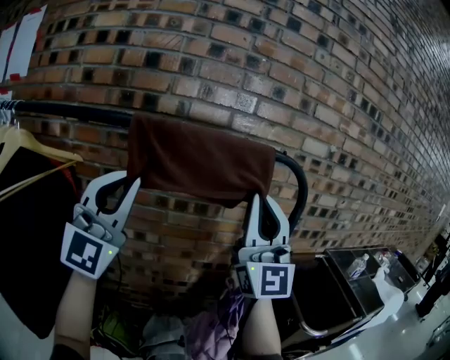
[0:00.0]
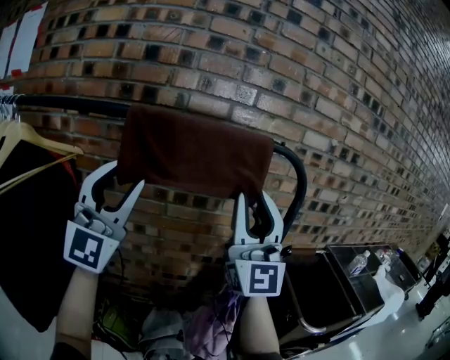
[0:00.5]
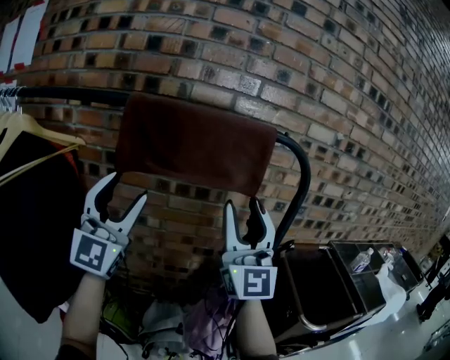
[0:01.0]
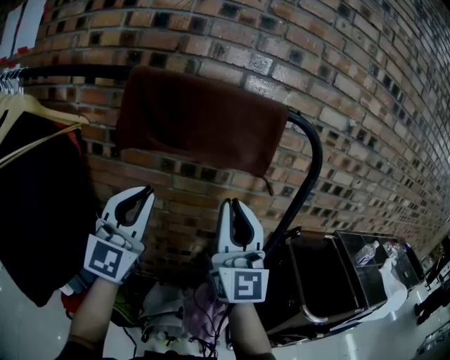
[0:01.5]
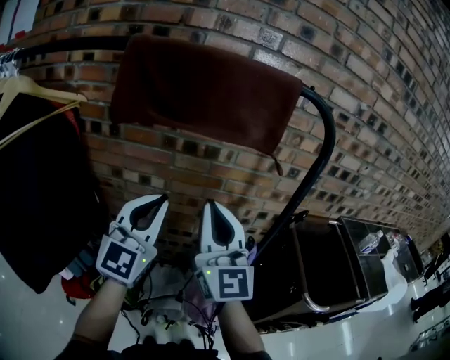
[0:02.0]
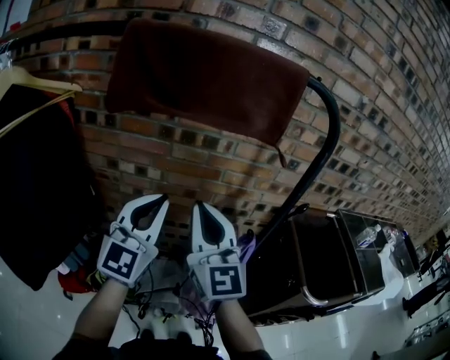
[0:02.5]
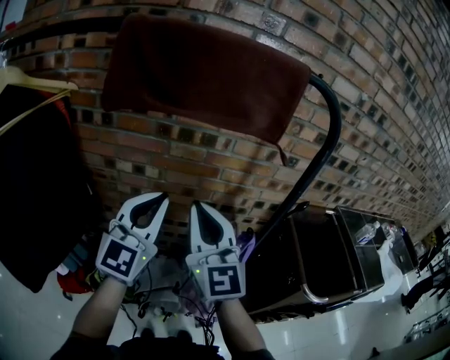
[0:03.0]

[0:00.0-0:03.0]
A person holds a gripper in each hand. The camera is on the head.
0:00.0 to 0:01.5: The two grippers go some 10 cm downward. The right gripper opens, then closes again; the left gripper opens, then closes once more.
0:01.5 to 0:03.0: The right gripper is displaced downward and to the left by approximately 15 cm, and swivels some 20 degrees. Meanwhile the left gripper shifts roughly 10 cm downward.

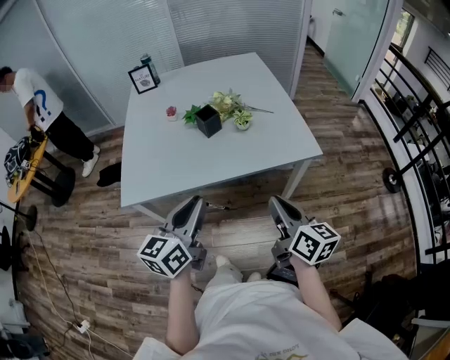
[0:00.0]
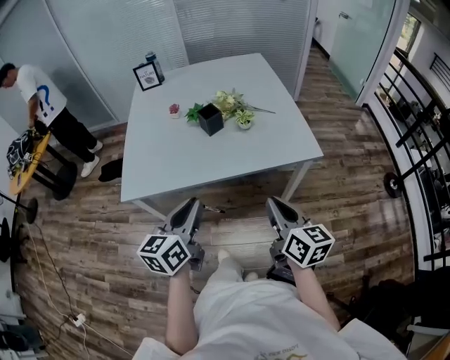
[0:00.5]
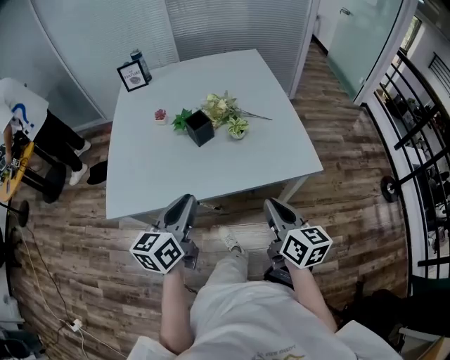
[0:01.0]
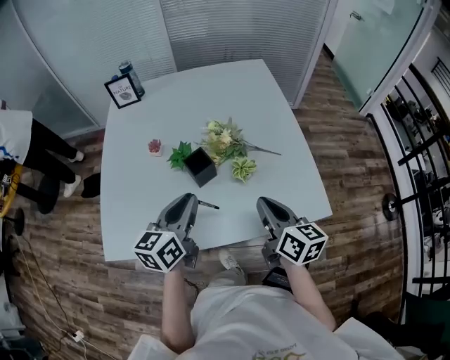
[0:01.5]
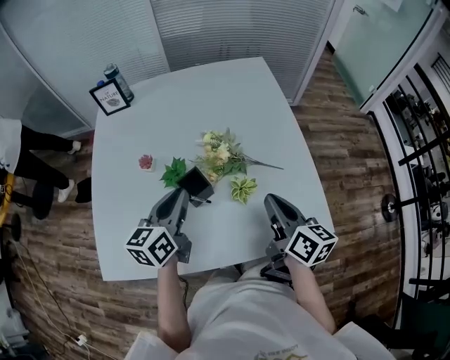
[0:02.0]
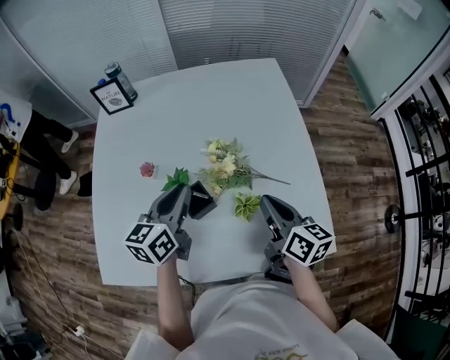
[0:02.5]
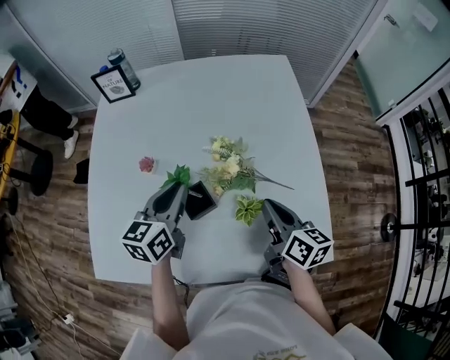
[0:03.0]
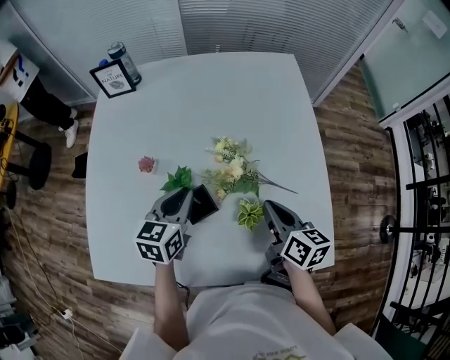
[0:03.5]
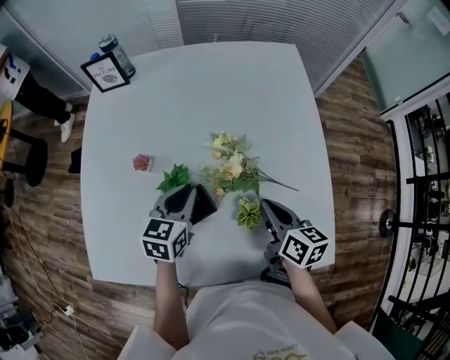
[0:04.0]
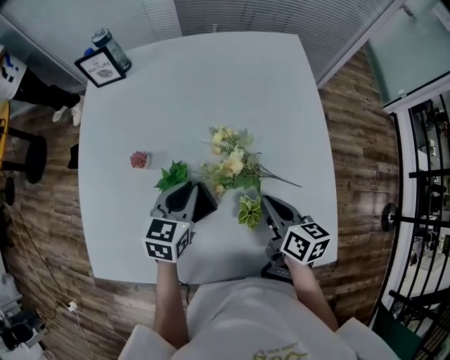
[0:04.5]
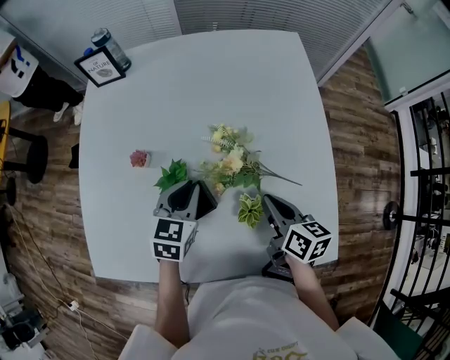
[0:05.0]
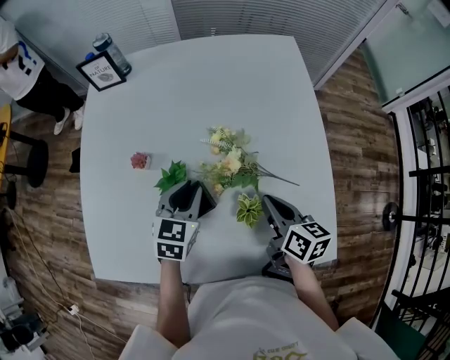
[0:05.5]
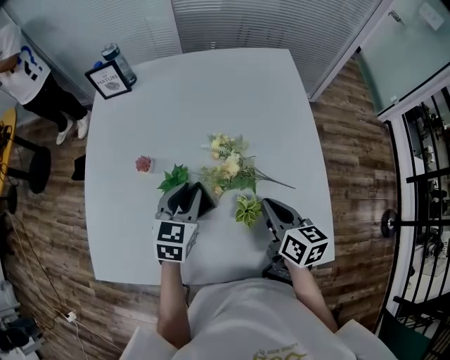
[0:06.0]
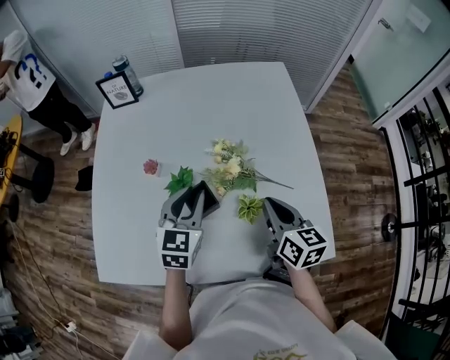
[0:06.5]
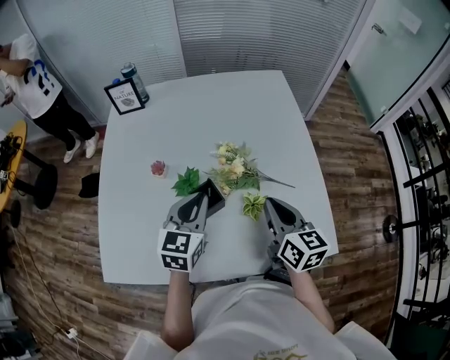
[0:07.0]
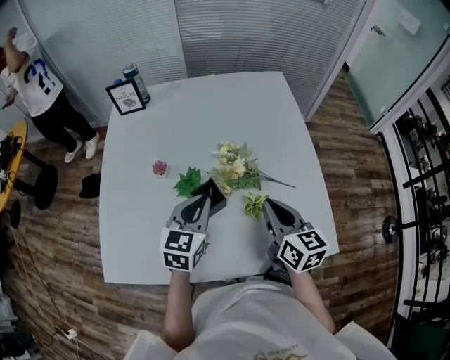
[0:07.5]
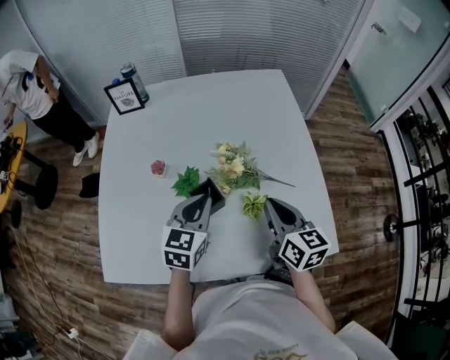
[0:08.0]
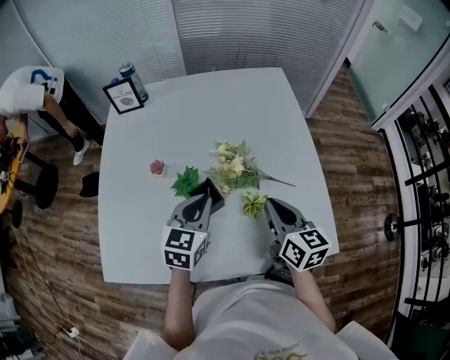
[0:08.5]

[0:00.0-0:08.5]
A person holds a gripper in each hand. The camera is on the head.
0:00.0 to 0:02.0: The pair of grippers is taken forward, approximately 40 cm.
0:02.0 to 0:04.0: The right gripper goes about 15 cm forward and downward, while the left gripper is displaced downward and forward by about 15 cm, and changes its angle by roughly 20 degrees.
0:04.0 to 0:06.5: Both grippers travel together upward, approximately 5 cm.
0:06.5 to 0:08.5: The grippers stay close to where they were, moving slightly.

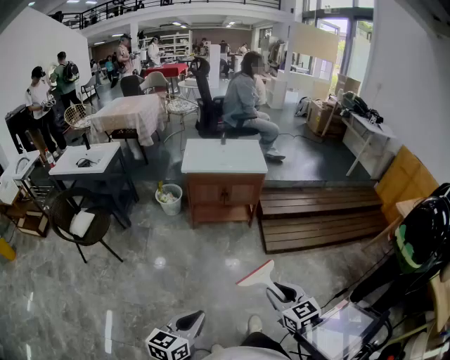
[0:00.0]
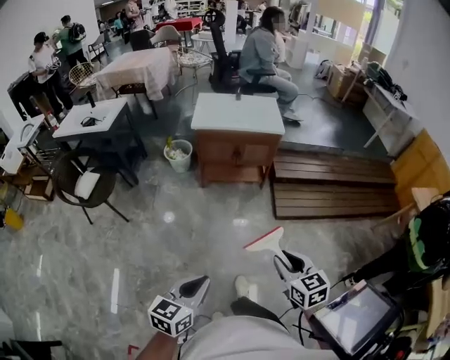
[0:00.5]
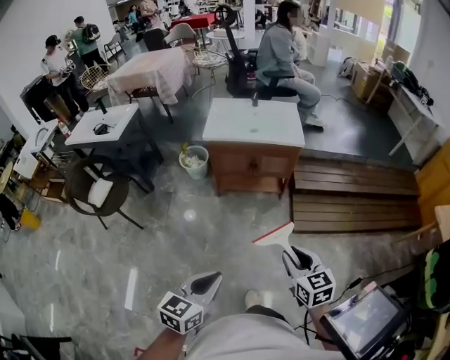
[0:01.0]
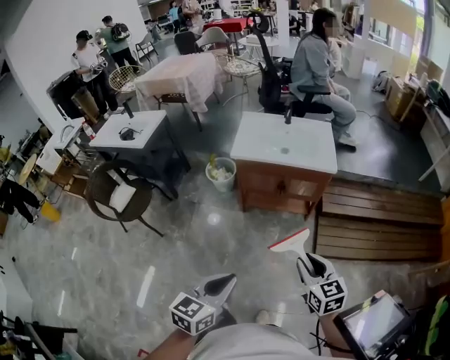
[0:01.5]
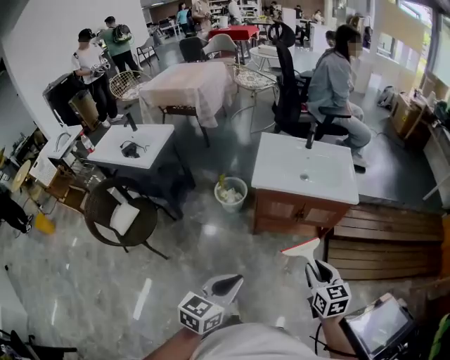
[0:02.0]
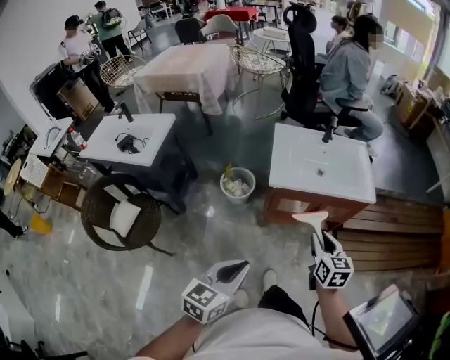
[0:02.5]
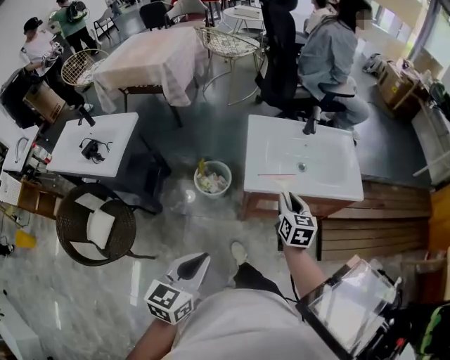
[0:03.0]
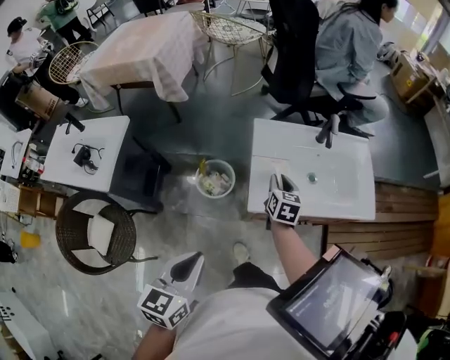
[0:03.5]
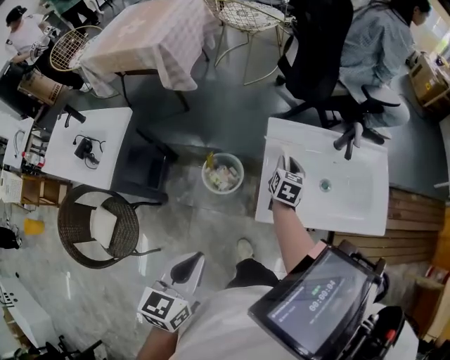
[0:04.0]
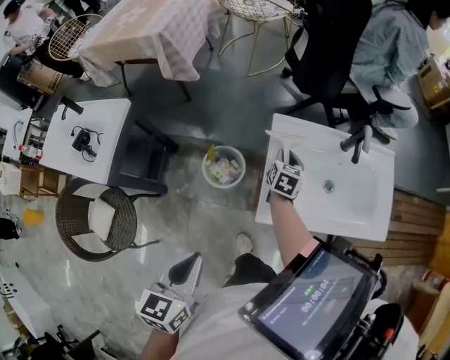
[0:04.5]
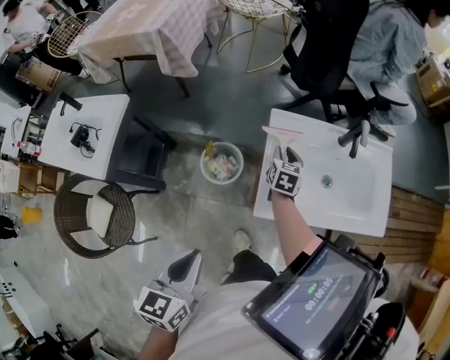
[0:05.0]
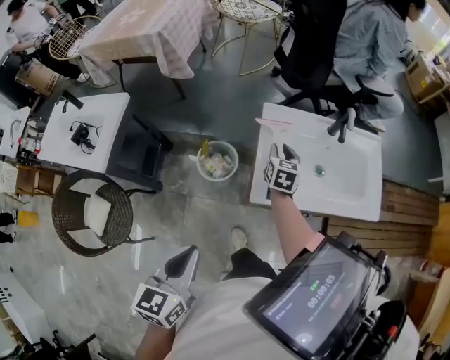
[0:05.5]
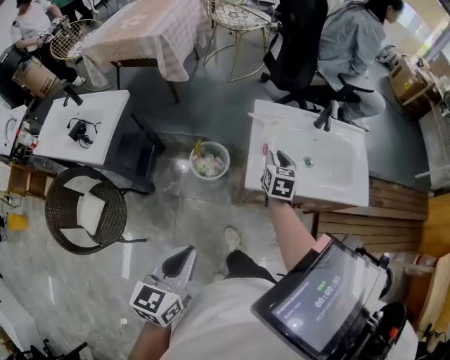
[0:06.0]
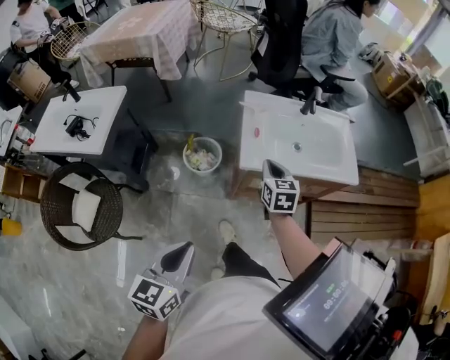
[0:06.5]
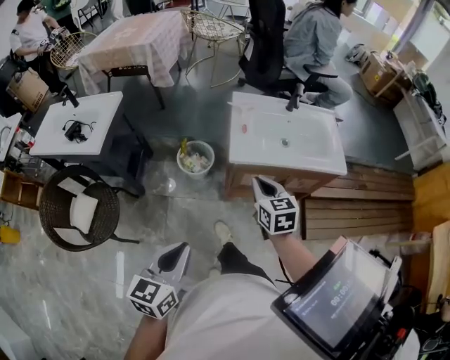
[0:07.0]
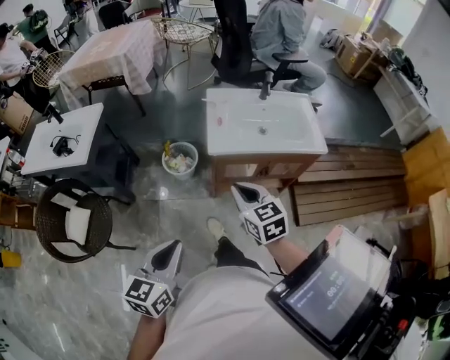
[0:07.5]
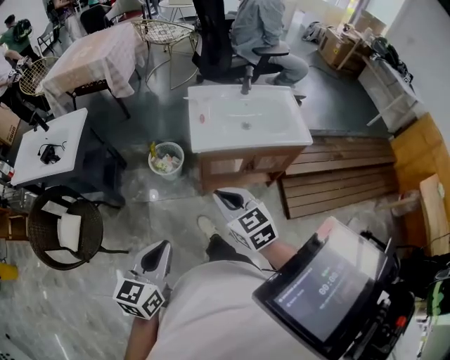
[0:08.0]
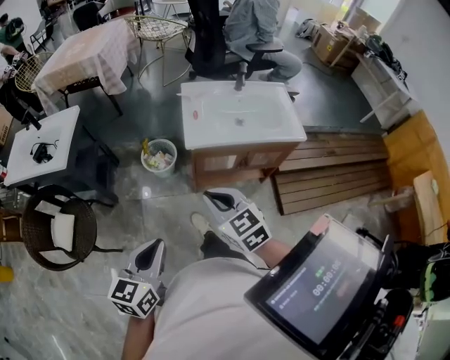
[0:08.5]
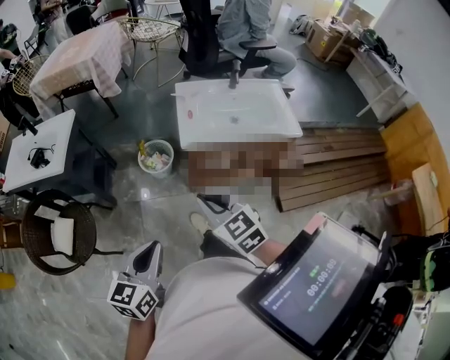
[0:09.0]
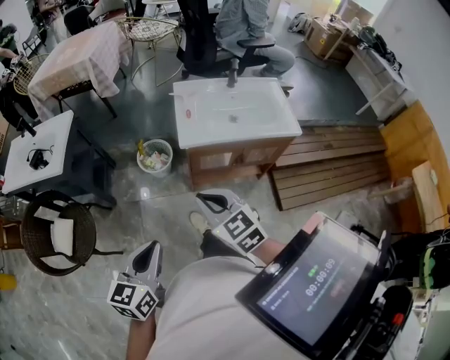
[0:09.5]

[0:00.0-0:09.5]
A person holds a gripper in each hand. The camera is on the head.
0:00.0 to 0:02.0: The pair of grippers is taken forward, some 60 cm.
0:02.0 to 0:04.0: The two grippers travel together, forward and to the left, some 60 cm. The right gripper rotates approximately 30 degrees.
0:04.0 to 0:05.5: The left gripper moves roughly 5 cm.
0:05.5 to 0:07.5: The left gripper shifts approximately 30 cm backward. Meanwhile the right gripper is displaced backward by some 50 cm, turns by about 30 degrees, and closes its fingers.
0:07.5 to 0:09.5: The right gripper shifts about 5 cm backward.

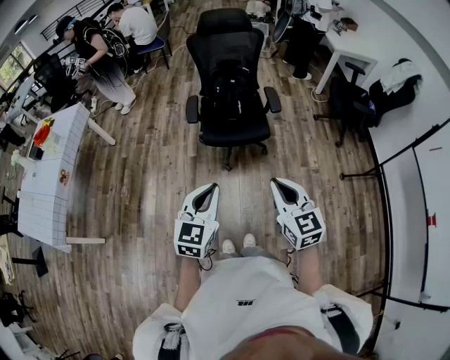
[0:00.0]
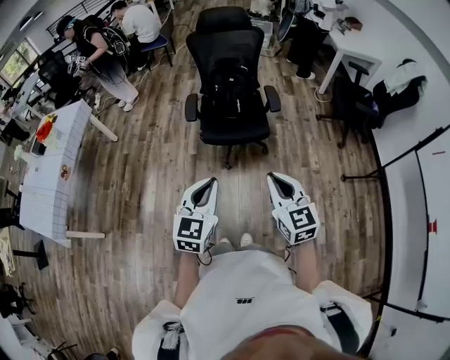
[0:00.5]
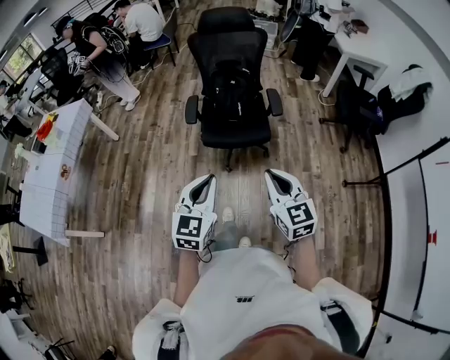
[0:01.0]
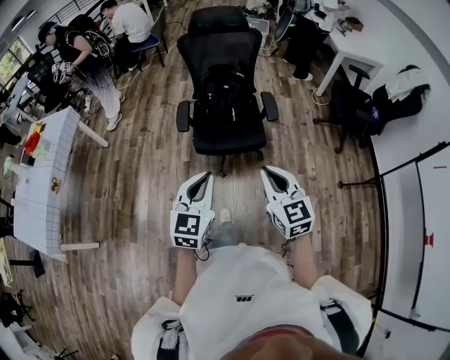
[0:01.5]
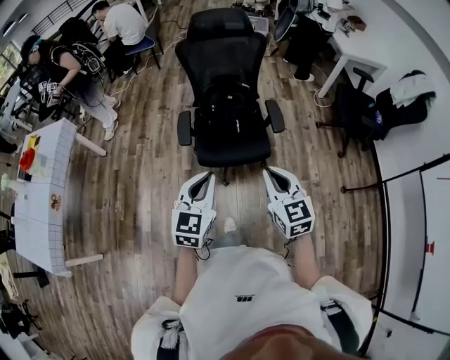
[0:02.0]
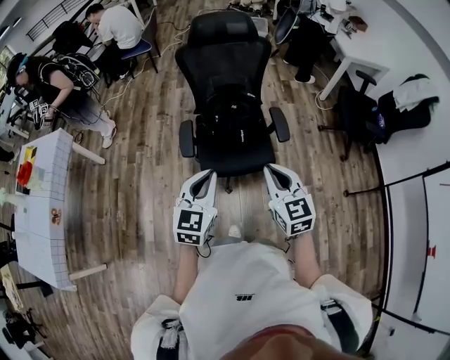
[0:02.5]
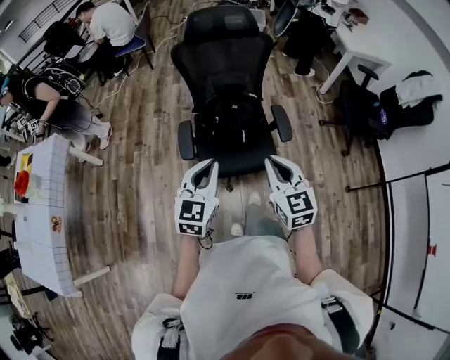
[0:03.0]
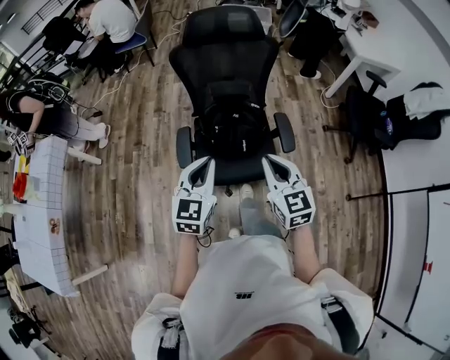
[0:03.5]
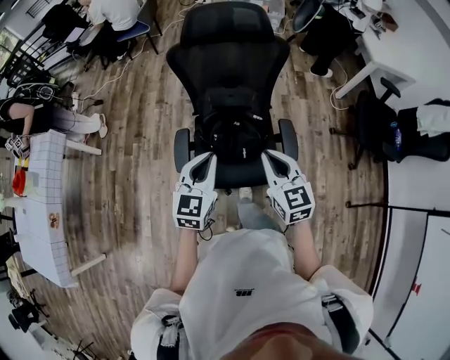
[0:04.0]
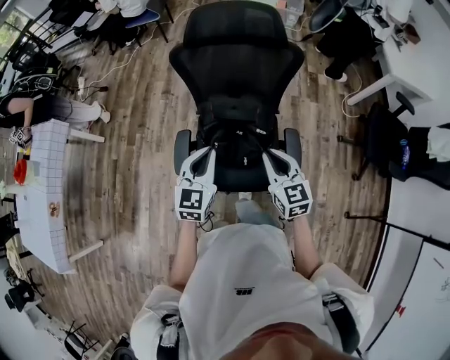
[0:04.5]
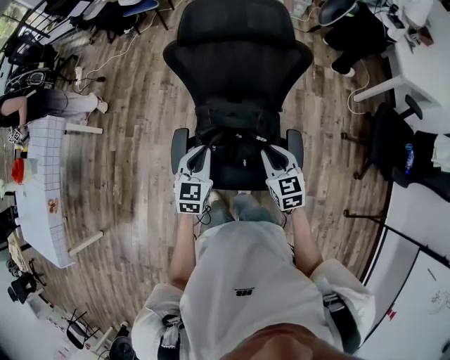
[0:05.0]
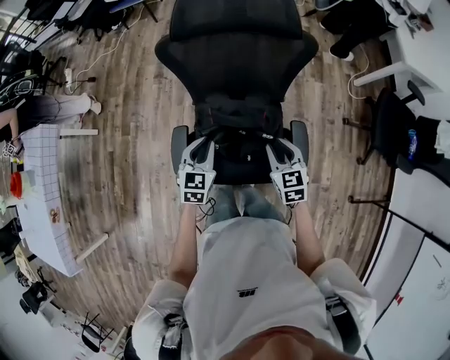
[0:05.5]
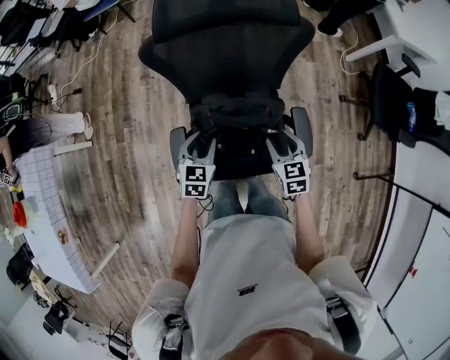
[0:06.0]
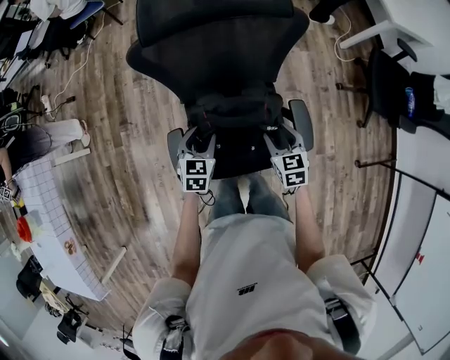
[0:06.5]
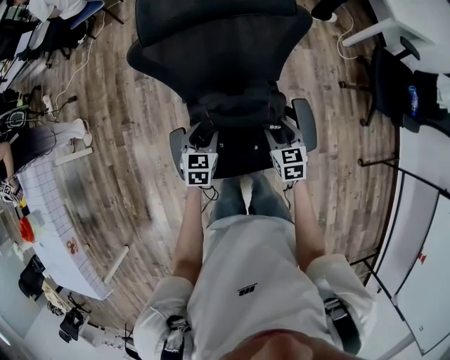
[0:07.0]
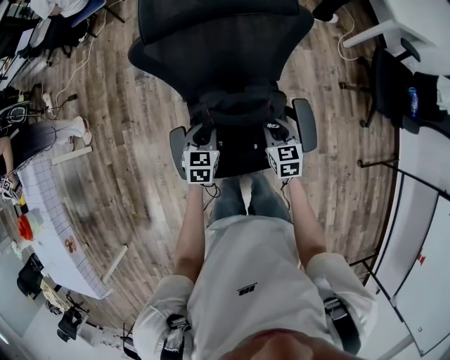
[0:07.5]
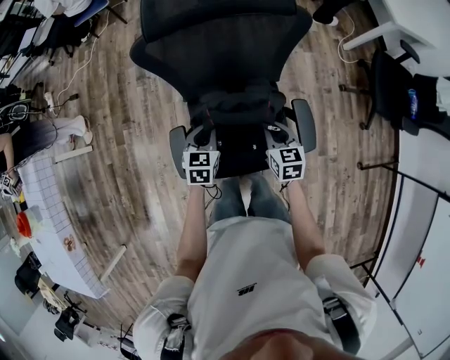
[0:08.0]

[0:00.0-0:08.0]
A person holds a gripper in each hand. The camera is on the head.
0:00.0 to 0:02.0: The grippers both shift forward by roughly 25 cm.
0:02.0 to 0:04.0: Both grippers move forward, approximately 35 cm.
0:04.0 to 0:06.0: The grippers both shift downward and forward by some 30 cm. The right gripper rotates about 20 degrees, and opens its fingers. The left gripper rotates roughly 20 degrees, and opens its fingers.
0:06.0 to 0:08.0: The left gripper closes; the right gripper closes.
